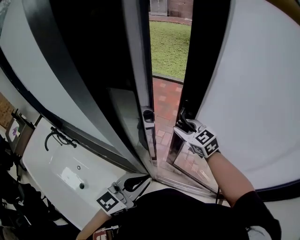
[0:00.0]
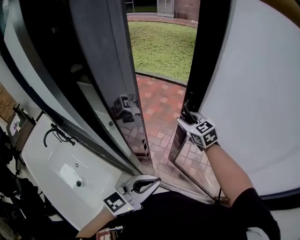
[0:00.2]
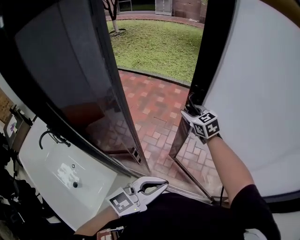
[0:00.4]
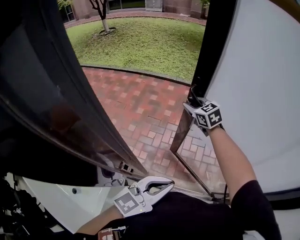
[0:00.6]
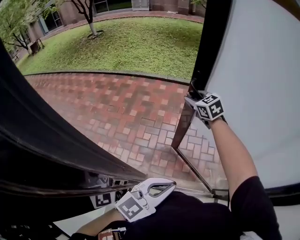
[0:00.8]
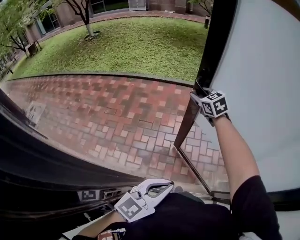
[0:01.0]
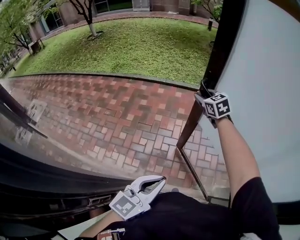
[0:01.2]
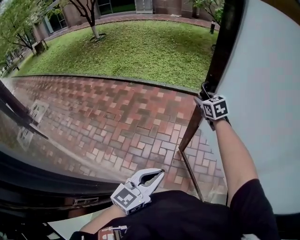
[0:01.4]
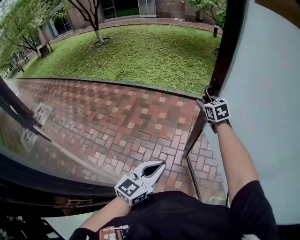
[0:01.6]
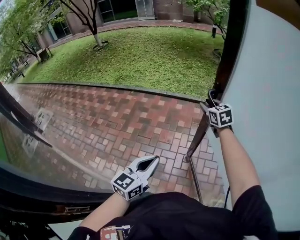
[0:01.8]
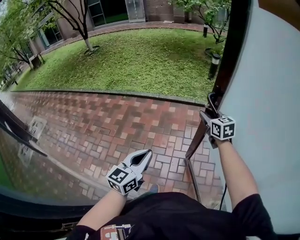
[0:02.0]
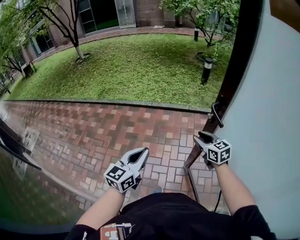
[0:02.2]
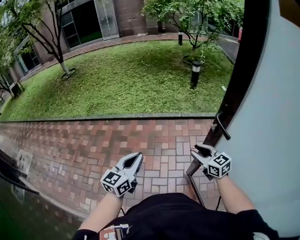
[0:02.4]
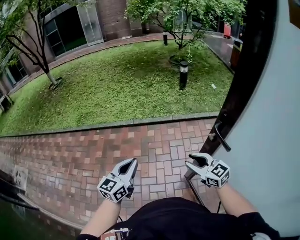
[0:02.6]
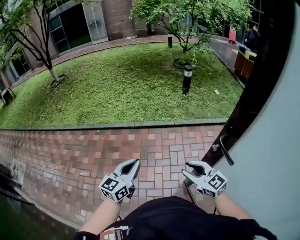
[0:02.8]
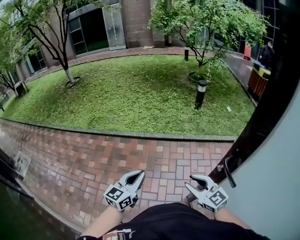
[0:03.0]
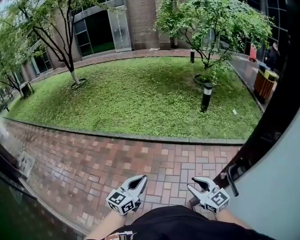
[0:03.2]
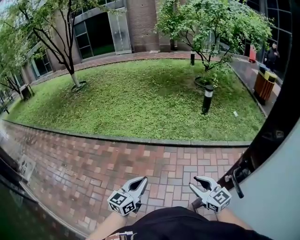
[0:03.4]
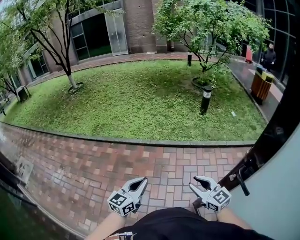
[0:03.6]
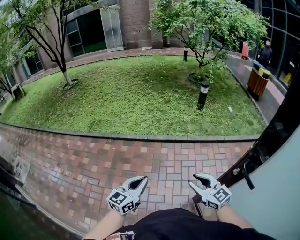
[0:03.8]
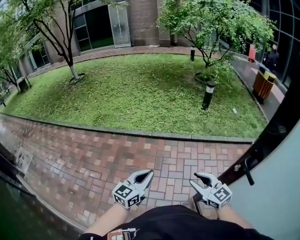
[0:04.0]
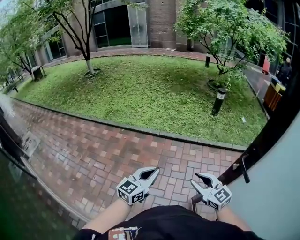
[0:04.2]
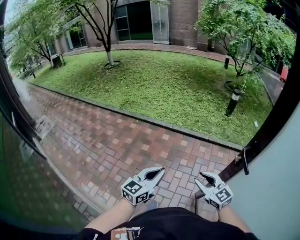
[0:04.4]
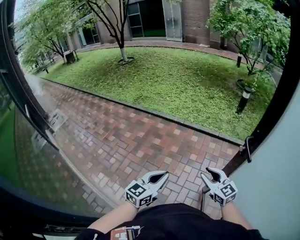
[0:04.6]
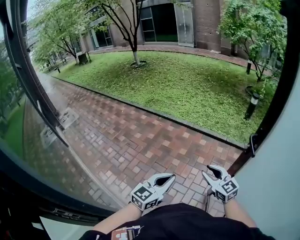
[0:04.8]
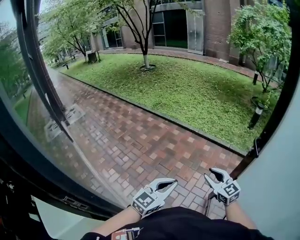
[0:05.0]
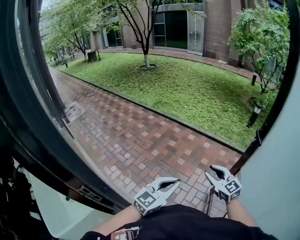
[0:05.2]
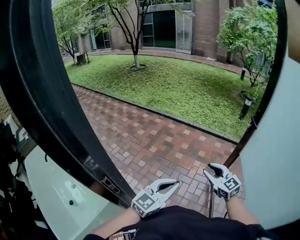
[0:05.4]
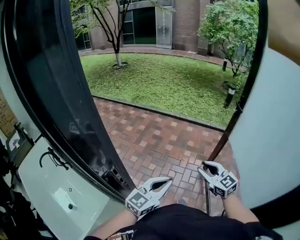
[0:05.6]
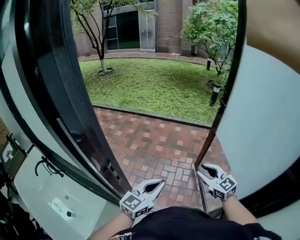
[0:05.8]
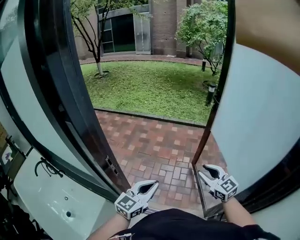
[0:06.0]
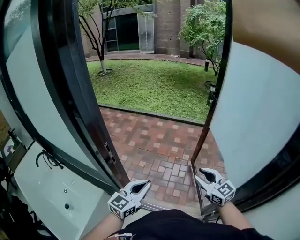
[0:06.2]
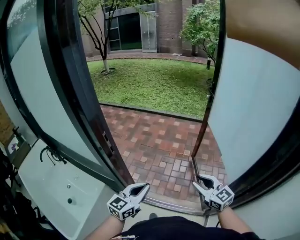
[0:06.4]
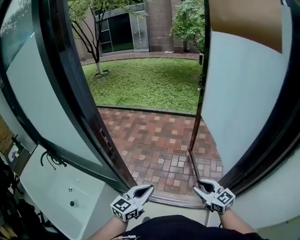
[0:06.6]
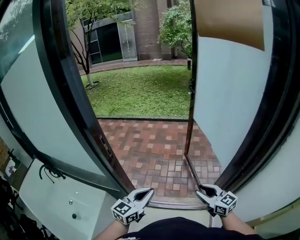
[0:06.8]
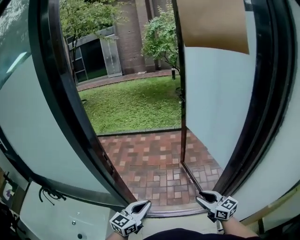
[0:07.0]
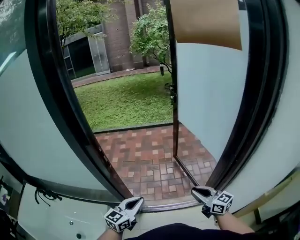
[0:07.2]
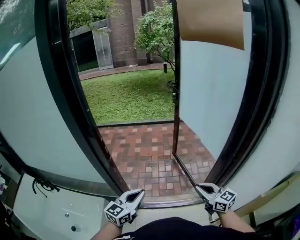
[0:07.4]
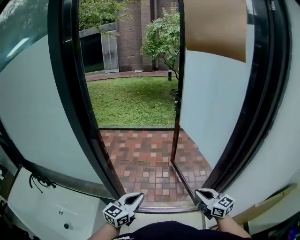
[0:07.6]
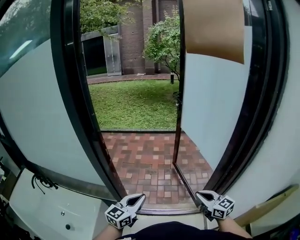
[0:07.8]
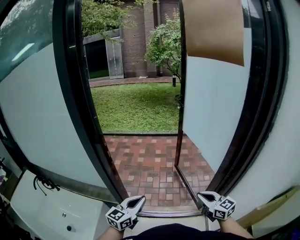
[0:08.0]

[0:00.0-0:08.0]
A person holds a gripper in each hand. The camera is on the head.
0:00.0 to 0:01.6: Both grippers travel together forward and to the right, roughly 50 cm. The right gripper changes its angle by about 30 degrees.
0:01.6 to 0:03.2: The left gripper is displaced forward by approximately 40 cm; the right gripper shifts about 10 cm downward and forward, and rotates roughly 20 degrees.
0:03.2 to 0:04.8: The right gripper moves backward and to the left, some 15 cm. Meanwhile the left gripper travels backward by approximately 30 cm.
0:04.8 to 0:06.4: Both grippers are carried backward, about 50 cm.
0:06.4 to 0:08.0: The left gripper moves left and right over some 10 cm, changing direction 2 times; the right gripper heads backward, covering some 15 cm, and closes its fingers.

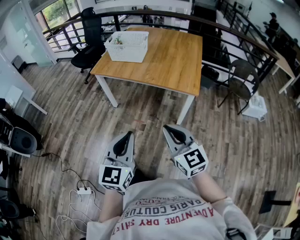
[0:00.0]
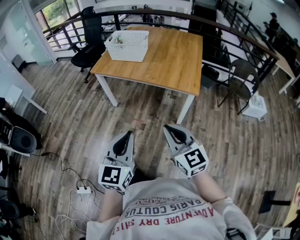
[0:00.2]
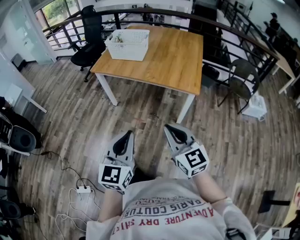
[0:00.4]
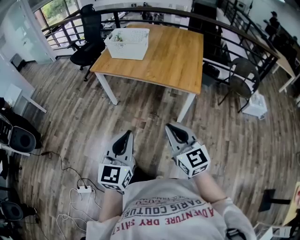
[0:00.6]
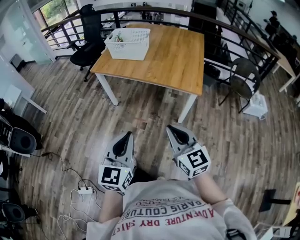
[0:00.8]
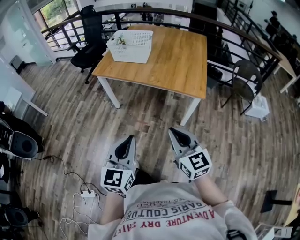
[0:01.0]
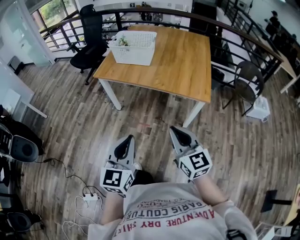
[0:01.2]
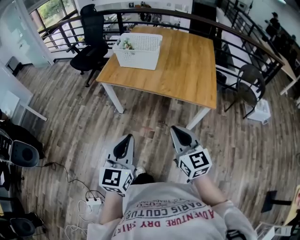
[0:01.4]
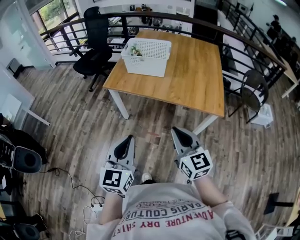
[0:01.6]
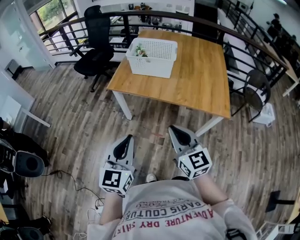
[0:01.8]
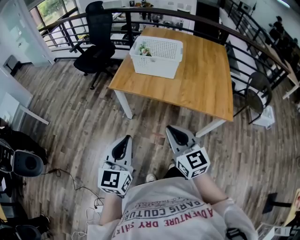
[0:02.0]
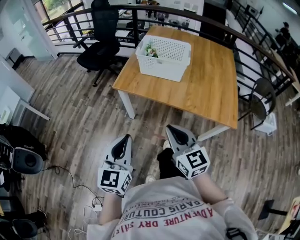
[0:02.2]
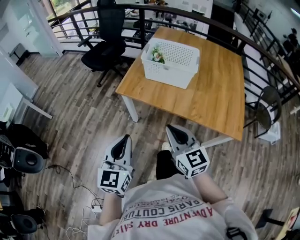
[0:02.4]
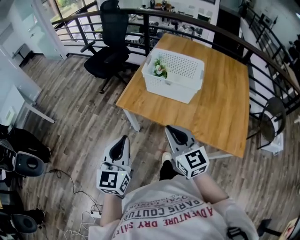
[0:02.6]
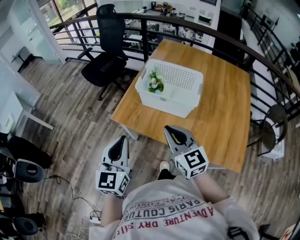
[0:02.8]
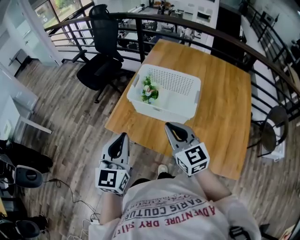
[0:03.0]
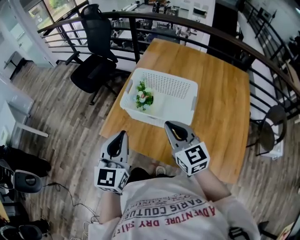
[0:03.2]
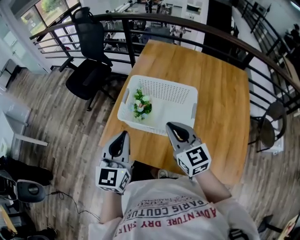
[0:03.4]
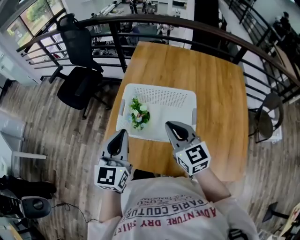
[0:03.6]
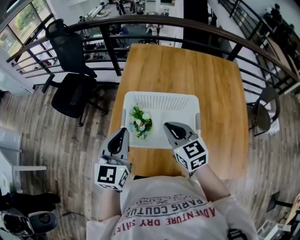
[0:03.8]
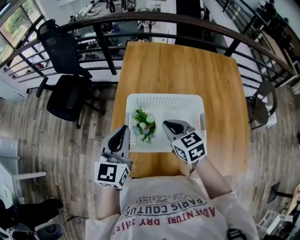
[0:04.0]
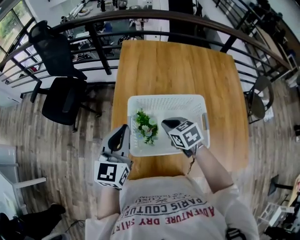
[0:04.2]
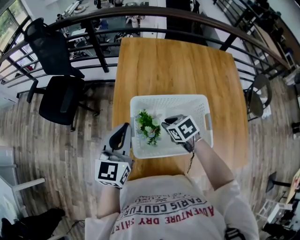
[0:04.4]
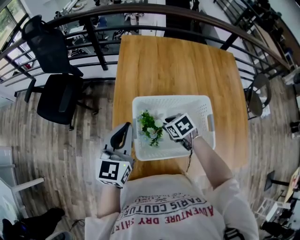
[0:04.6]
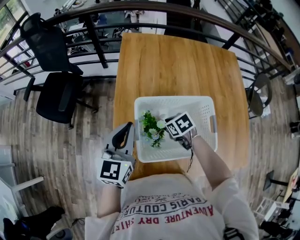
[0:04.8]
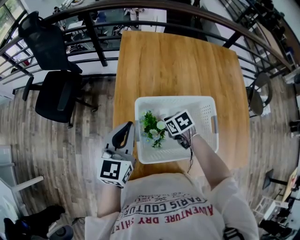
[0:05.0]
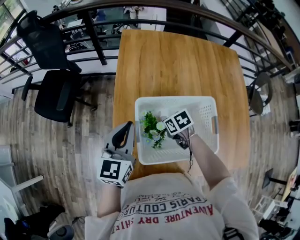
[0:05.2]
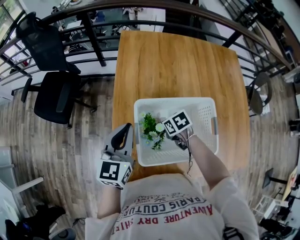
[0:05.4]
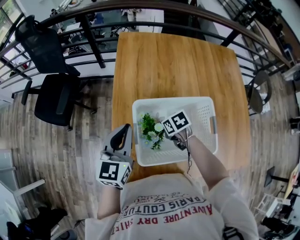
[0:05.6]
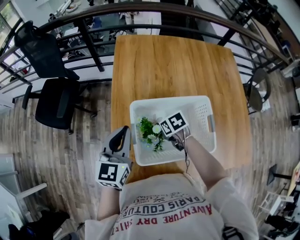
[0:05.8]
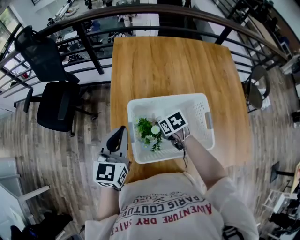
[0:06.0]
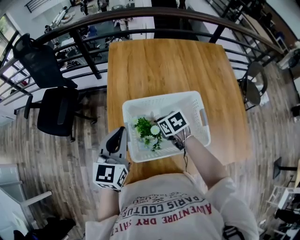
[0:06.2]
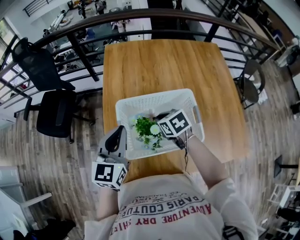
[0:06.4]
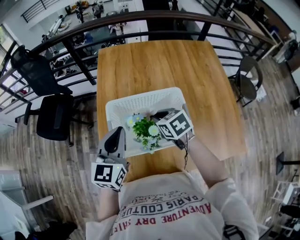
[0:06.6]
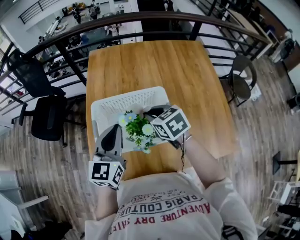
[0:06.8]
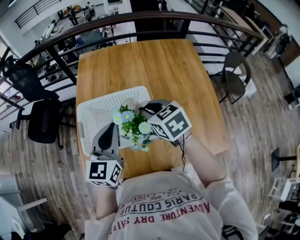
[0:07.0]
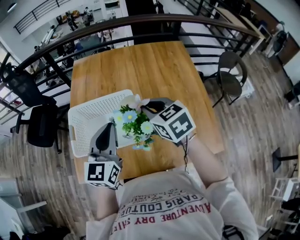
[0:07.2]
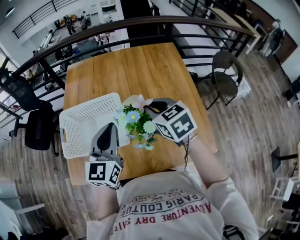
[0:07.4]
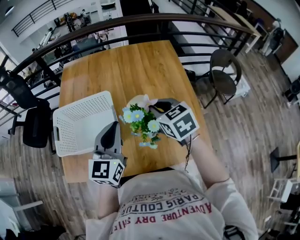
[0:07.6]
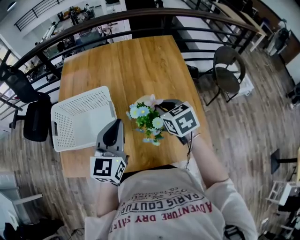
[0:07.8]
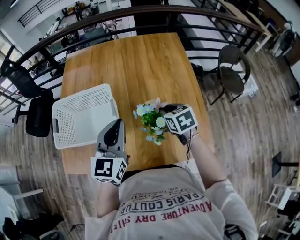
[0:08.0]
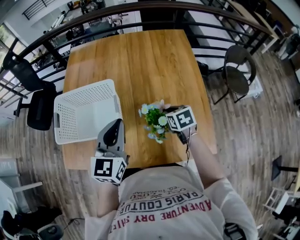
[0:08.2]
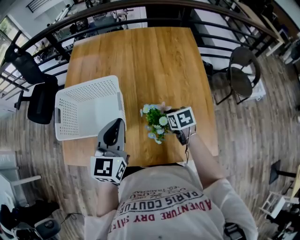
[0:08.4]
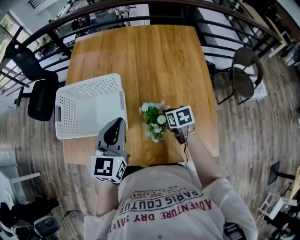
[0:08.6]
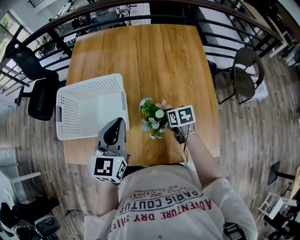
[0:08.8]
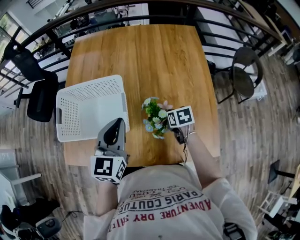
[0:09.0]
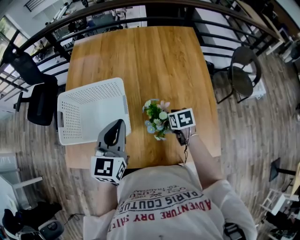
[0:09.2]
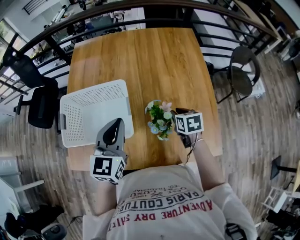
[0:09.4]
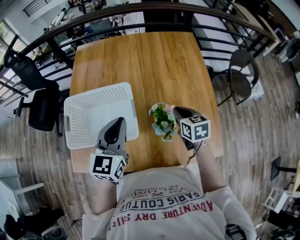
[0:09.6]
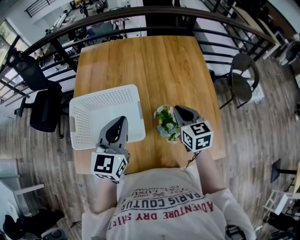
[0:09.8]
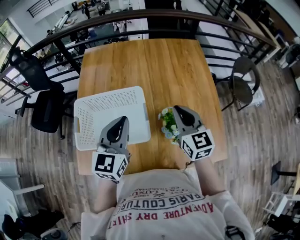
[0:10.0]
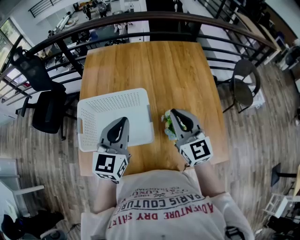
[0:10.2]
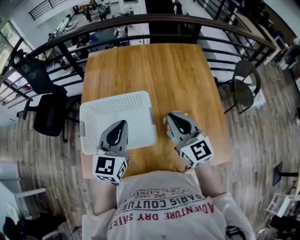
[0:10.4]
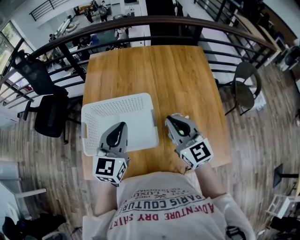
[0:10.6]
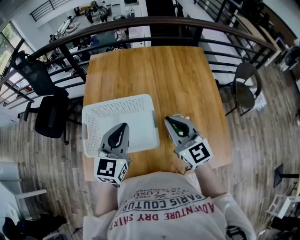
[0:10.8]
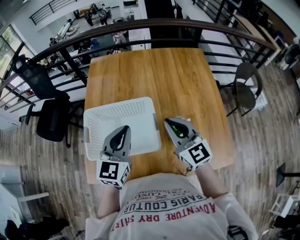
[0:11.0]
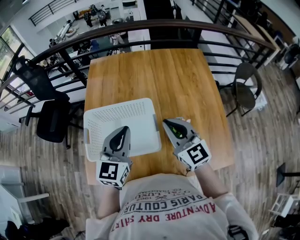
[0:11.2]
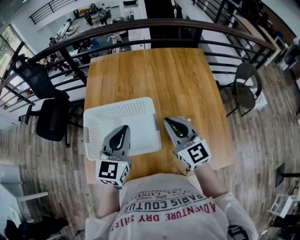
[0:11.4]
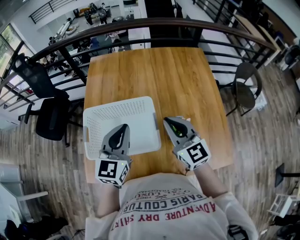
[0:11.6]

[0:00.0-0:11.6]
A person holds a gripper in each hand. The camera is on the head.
0:00.0 to 0:01.4: The two grippers go about 20 cm forward and to the left.
0:01.4 to 0:02.8: Both grippers are carried forward, roughly 40 cm.
0:02.8 to 0:04.4: The right gripper travels forward and downward by roughly 40 cm, and tilts its fingers approximately 50 degrees downward. Meanwhile the left gripper travels forward by roughly 40 cm, and turns by roughly 30 degrees.
0:04.4 to 0:05.8: The right gripper is displaced downward by roughly 10 cm.
0:05.8 to 0:07.2: The left gripper shifts approximately 30 cm to the right and backward. Meanwhile the right gripper moves upward and to the right, roughly 35 cm, and swivels about 40 degrees.
0:07.2 to 0:08.8: The right gripper heads downward and to the right, covering approximately 30 cm, and turns by about 30 degrees; the left gripper moves to the right and downward, about 15 cm.
0:08.8 to 0:10.2: The right gripper is displaced upward and to the left by some 30 cm, and tilts its fingers some 50 degrees upward. Meanwhile the left gripper goes roughly 10 cm to the left and upward.
0:10.2 to 0:11.6: The grippers make only small movements.

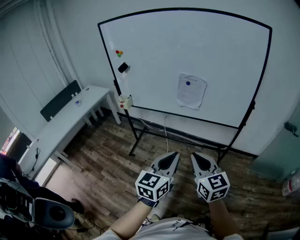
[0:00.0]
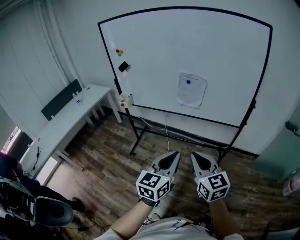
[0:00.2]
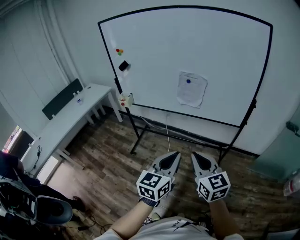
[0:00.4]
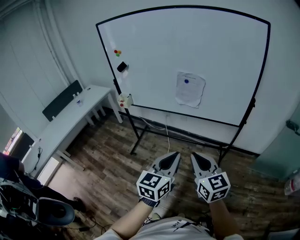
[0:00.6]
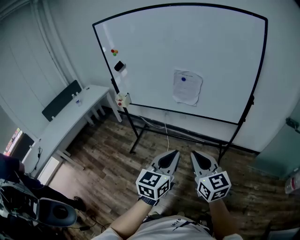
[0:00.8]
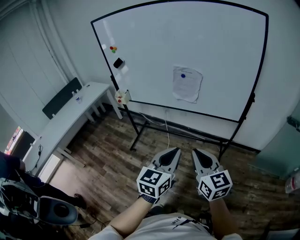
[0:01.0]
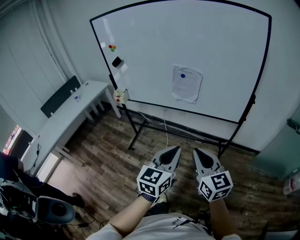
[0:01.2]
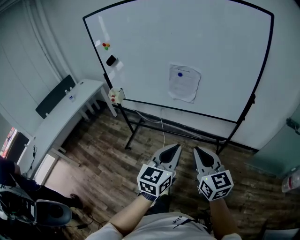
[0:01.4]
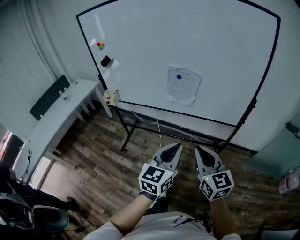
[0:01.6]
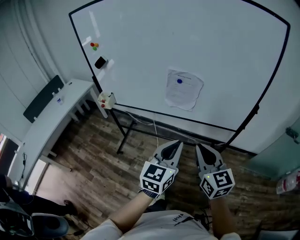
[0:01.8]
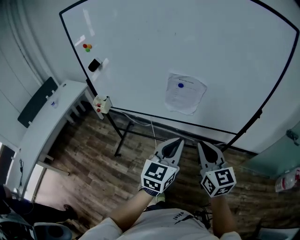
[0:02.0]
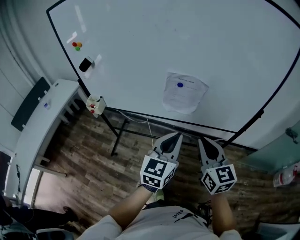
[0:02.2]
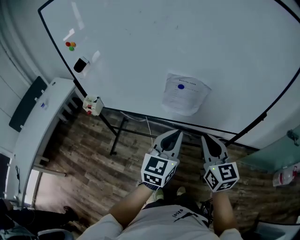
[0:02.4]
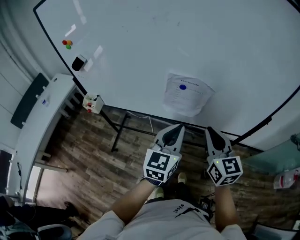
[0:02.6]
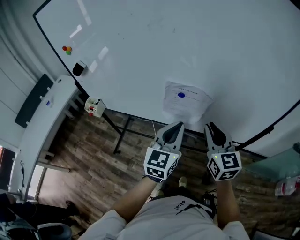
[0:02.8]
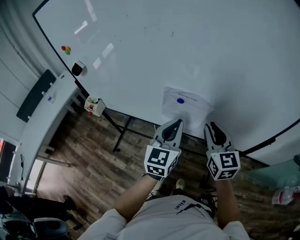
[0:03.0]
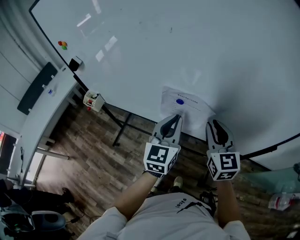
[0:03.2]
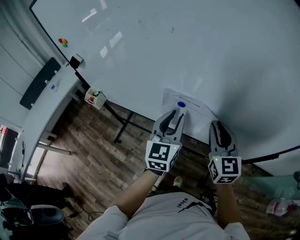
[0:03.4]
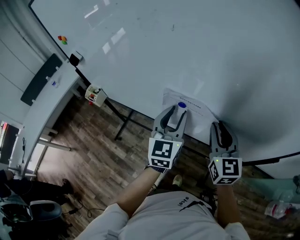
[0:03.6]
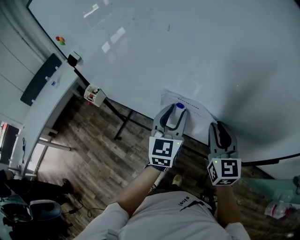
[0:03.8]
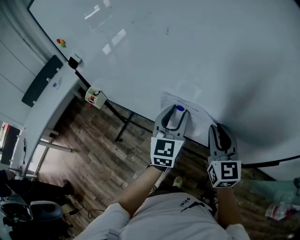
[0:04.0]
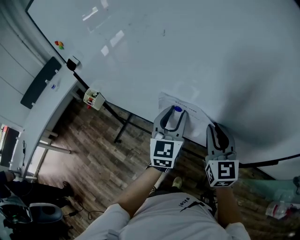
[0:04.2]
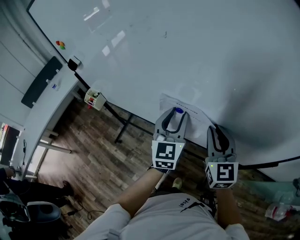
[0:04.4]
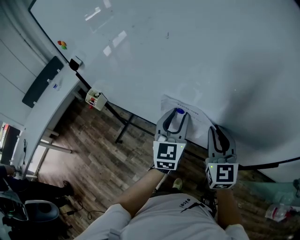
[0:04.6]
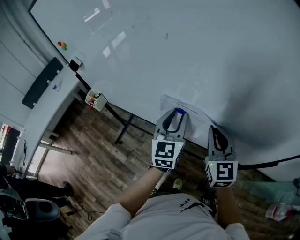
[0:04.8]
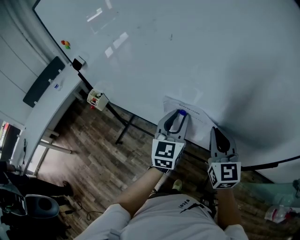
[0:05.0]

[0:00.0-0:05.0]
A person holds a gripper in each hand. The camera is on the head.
0:00.0 to 0:01.6: Both grippers travel together forward and to the right, approximately 15 cm.
0:01.6 to 0:03.4: The pair of grippers is taken forward, roughly 40 cm.
0:03.4 to 0:05.0: The grippers move only a little.
